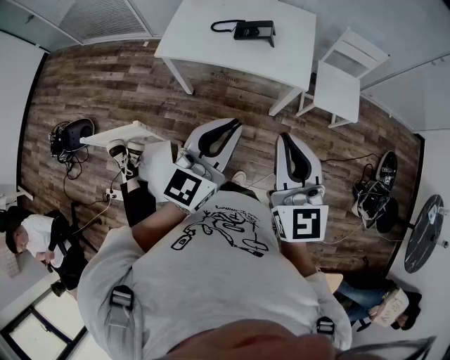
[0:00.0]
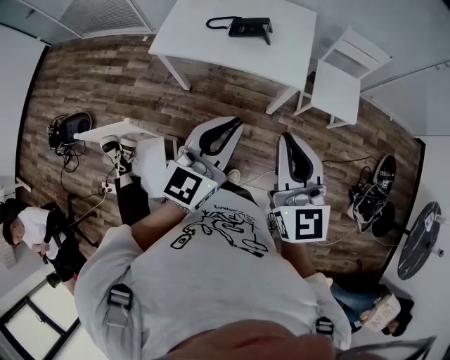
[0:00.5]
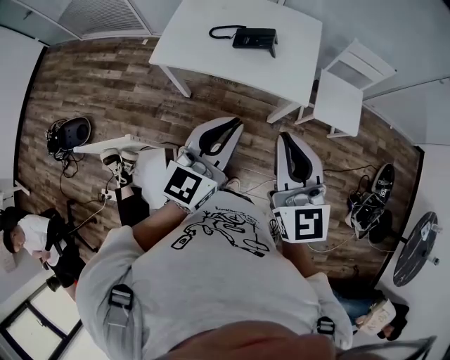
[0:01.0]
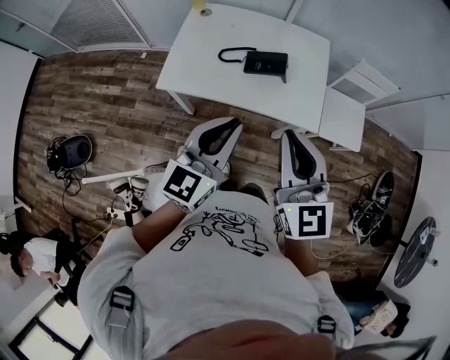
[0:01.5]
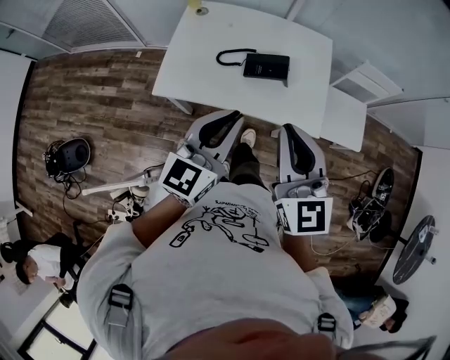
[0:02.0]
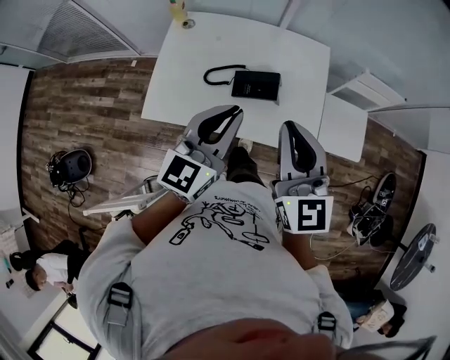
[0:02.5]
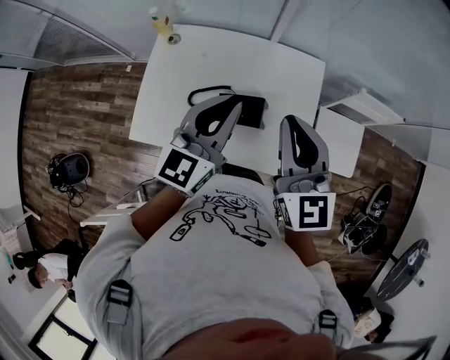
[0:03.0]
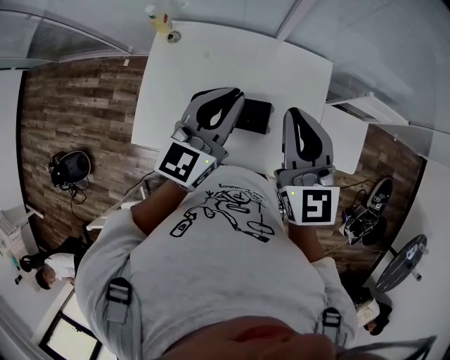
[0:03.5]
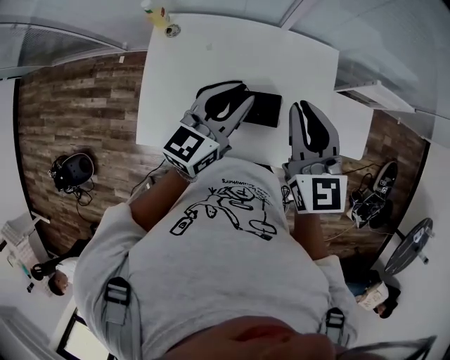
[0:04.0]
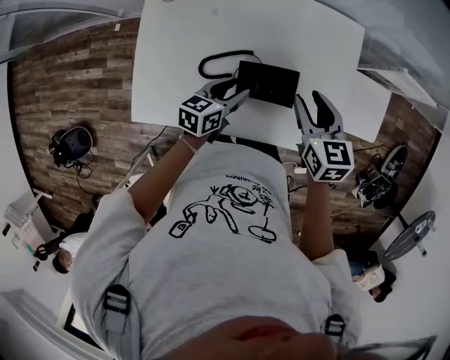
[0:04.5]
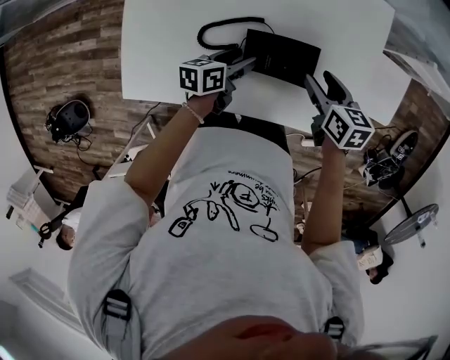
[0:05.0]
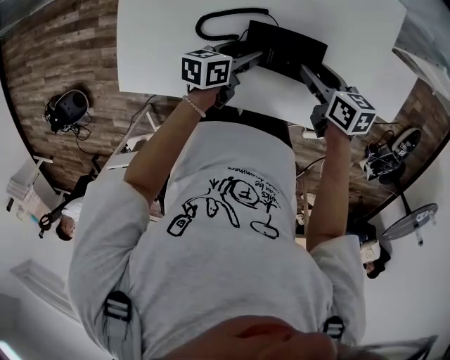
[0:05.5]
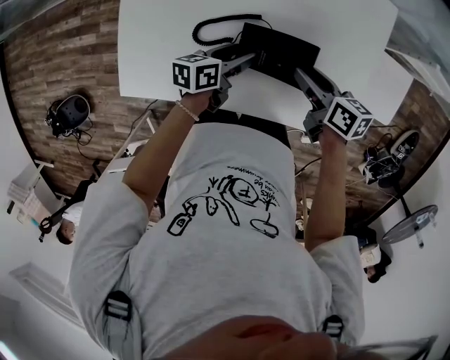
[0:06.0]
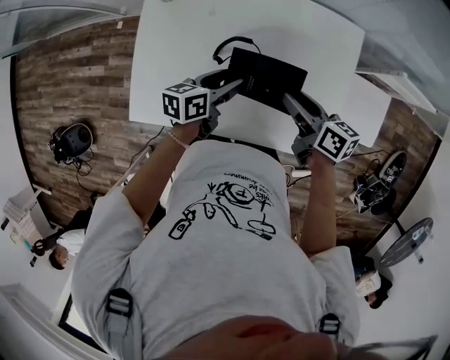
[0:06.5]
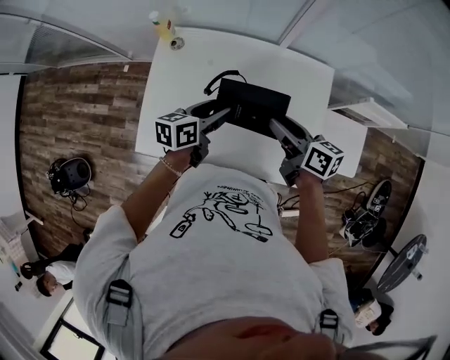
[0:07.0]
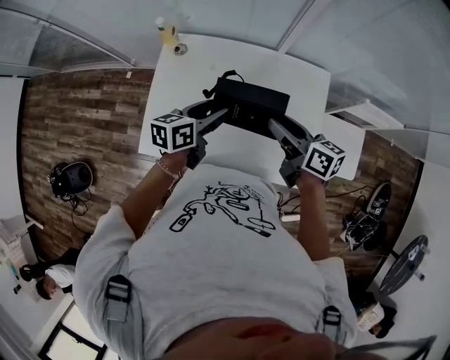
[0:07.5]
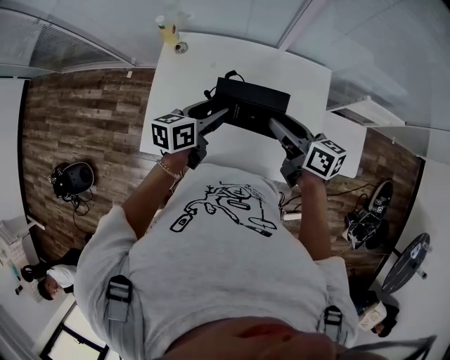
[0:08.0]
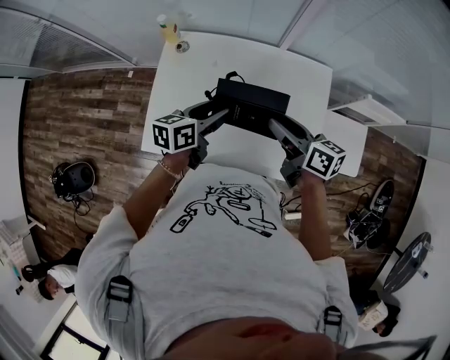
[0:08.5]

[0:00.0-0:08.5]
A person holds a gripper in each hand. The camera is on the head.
0:00.0 to 0:02.0: The grippers both shift forward by about 30 cm.
0:02.0 to 0:04.0: Both grippers move forward, some 35 cm.
0:04.0 to 0:06.5: Both grippers travel together downward, about 25 cm. The left gripper swivels some 40 degrees, and opens up. Meanwhile the right gripper rotates around the line of its fingers by some 50 degrees, clockwise from behind, and opens its fingers.
0:06.5 to 0:08.5: Both grippers travel together upward, some 15 cm.

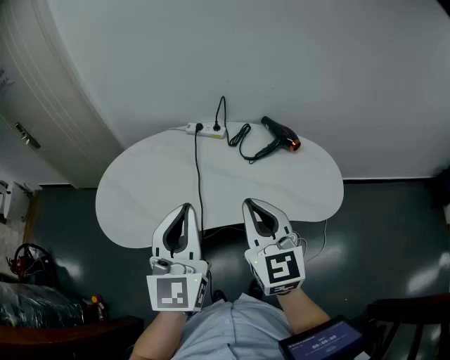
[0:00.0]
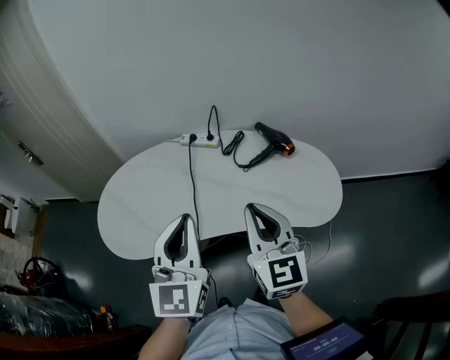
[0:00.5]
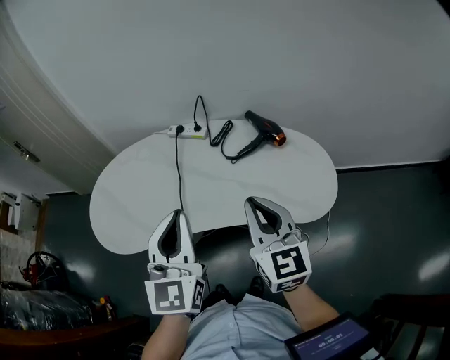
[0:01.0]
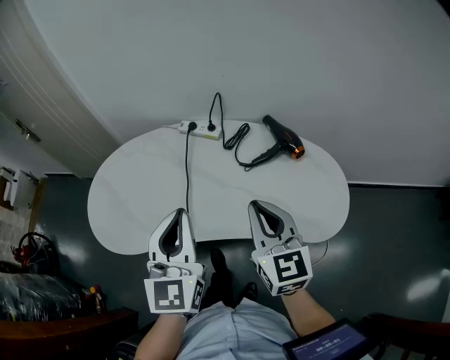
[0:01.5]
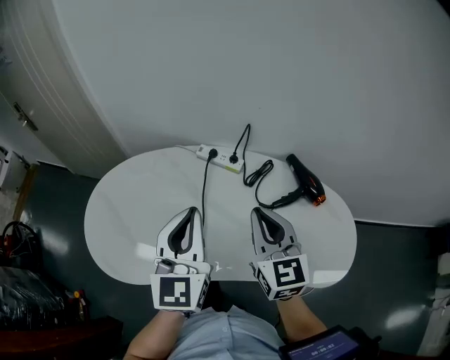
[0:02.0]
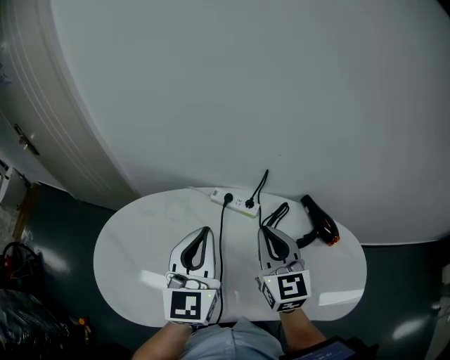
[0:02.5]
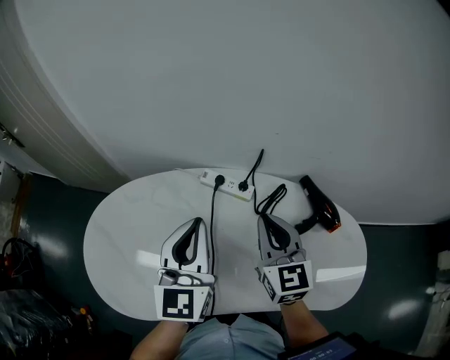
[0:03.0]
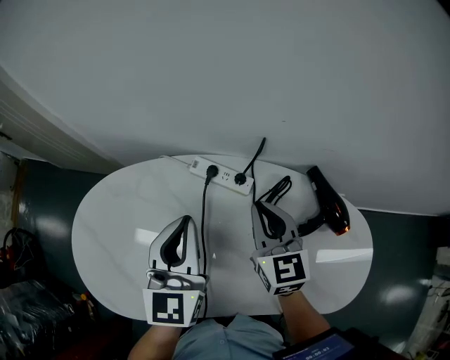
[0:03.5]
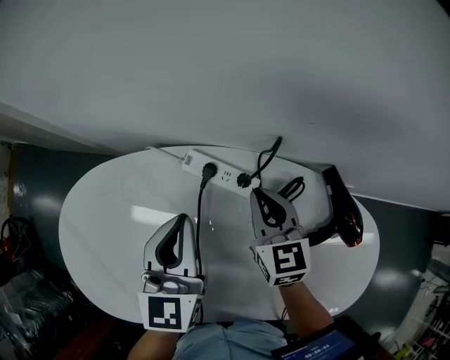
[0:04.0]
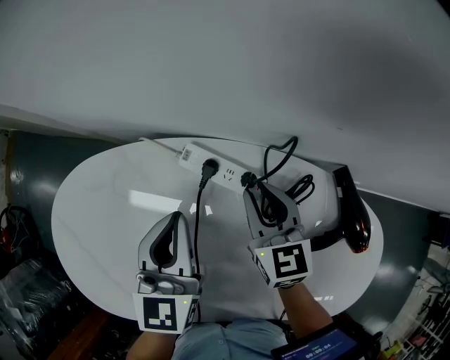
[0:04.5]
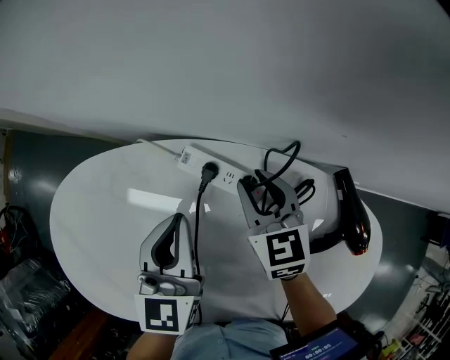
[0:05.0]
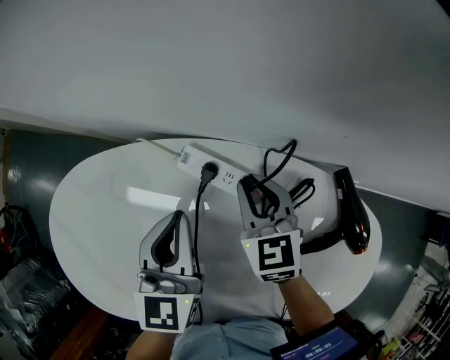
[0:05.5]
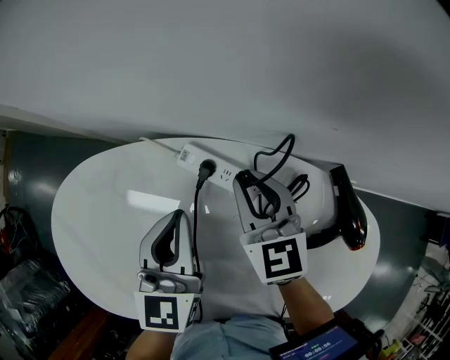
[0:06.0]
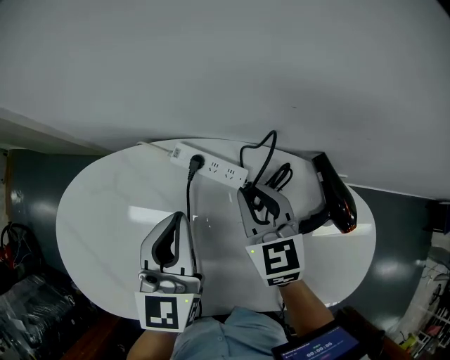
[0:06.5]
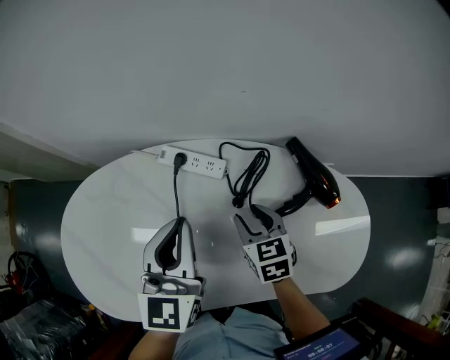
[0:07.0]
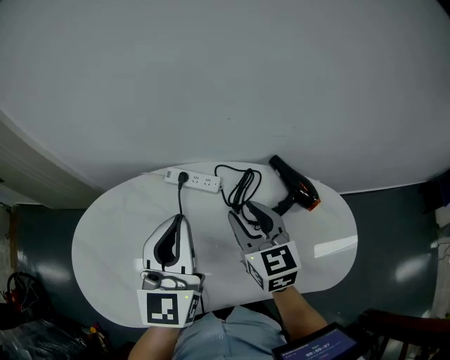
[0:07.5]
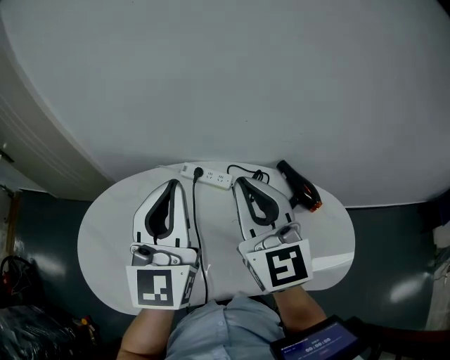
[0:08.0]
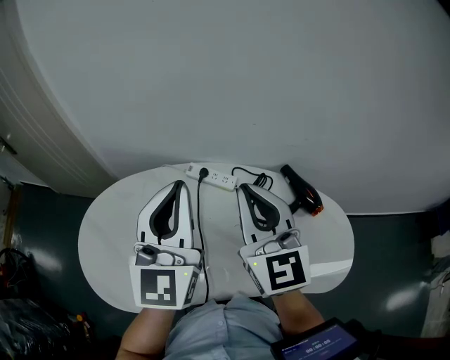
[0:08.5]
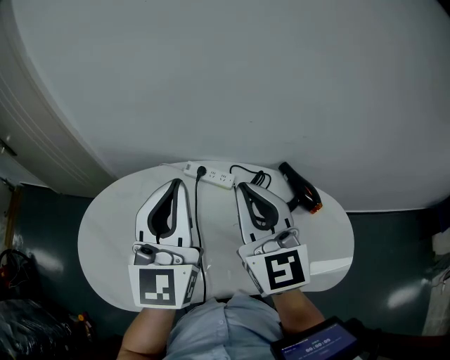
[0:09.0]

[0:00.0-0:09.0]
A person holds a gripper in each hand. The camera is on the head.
0:00.0 to 0:02.0: Both grippers move forward, approximately 20 cm.
0:02.0 to 0:04.5: The two grippers go approximately 30 cm forward and downward. The right gripper swivels roughly 20 degrees, and opens its fingers. The left gripper turns by approximately 20 degrees.
0:04.5 to 0:07.0: The right gripper is displaced backward by approximately 10 cm. Meanwhile the left gripper goes about 10 cm backward, upward and to the right.
0:07.0 to 0:09.0: The right gripper moves upward, approximately 30 cm, tilts its fingers roughly 40 degrees upward, and closes; the left gripper goes about 15 cm upward, and turns by approximately 20 degrees.

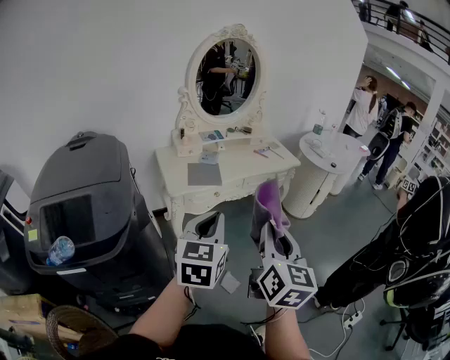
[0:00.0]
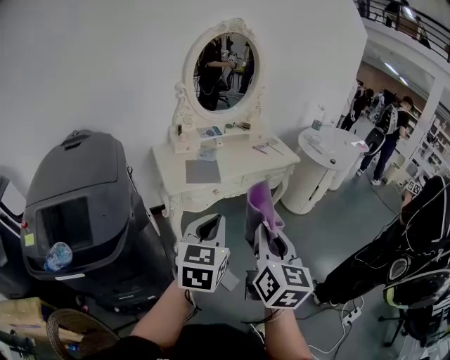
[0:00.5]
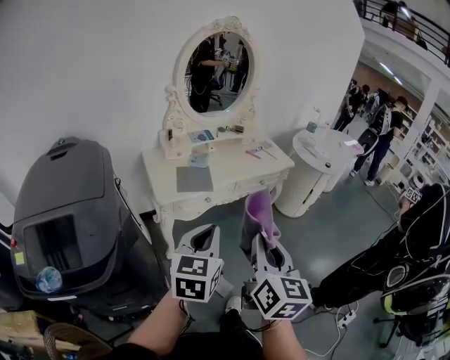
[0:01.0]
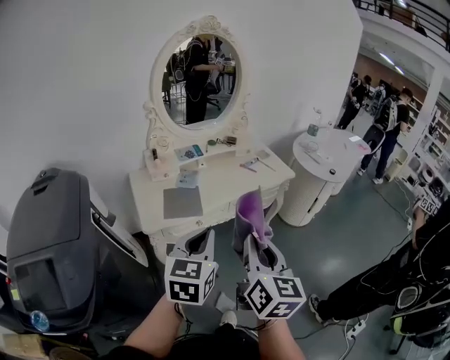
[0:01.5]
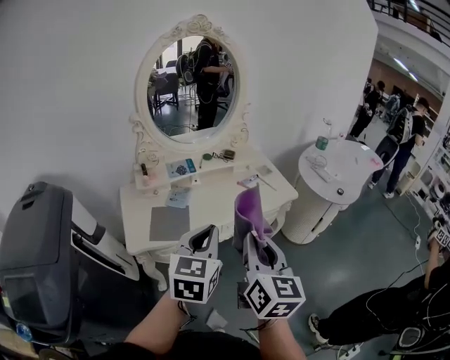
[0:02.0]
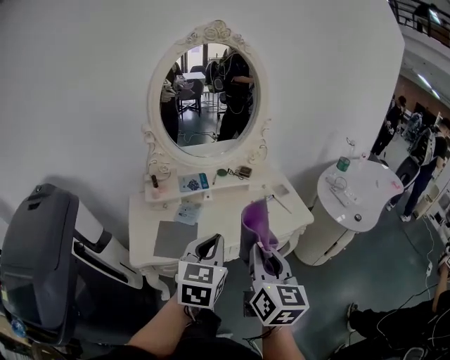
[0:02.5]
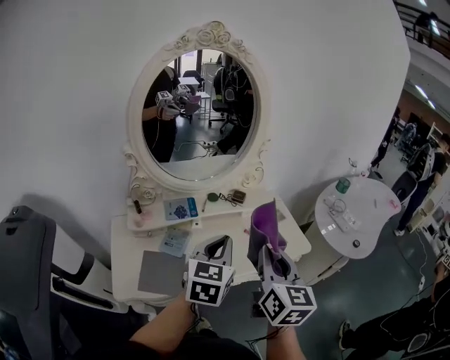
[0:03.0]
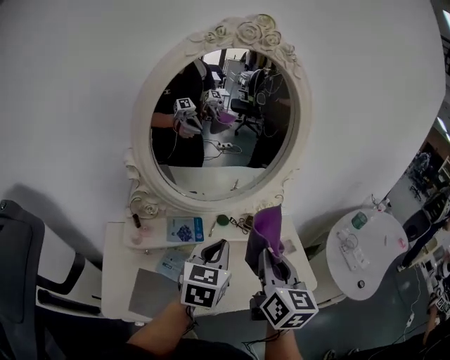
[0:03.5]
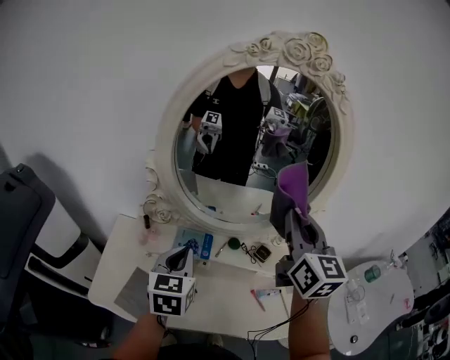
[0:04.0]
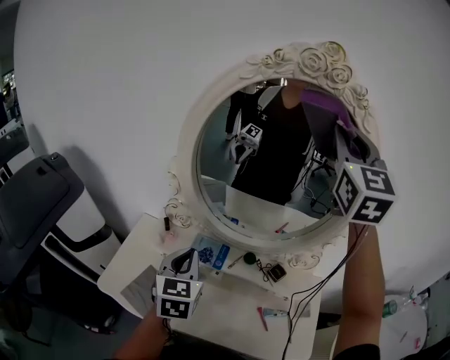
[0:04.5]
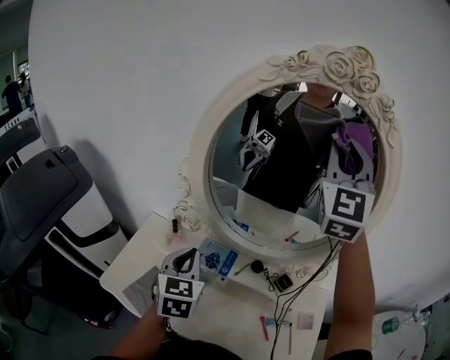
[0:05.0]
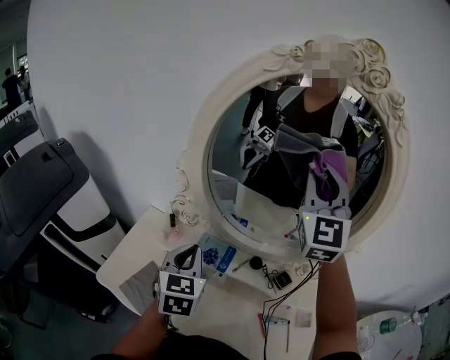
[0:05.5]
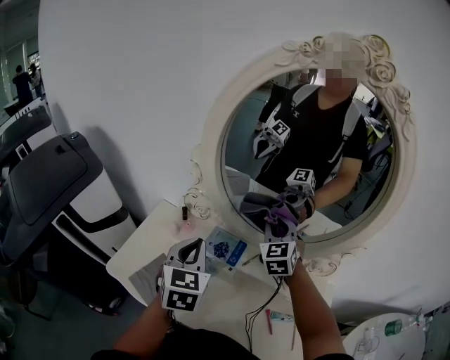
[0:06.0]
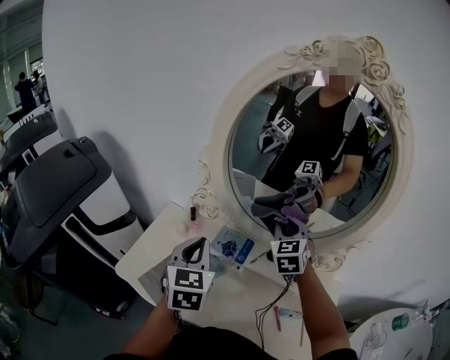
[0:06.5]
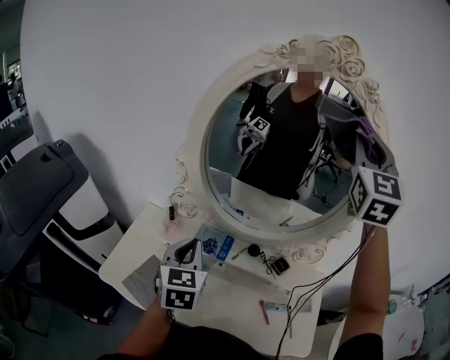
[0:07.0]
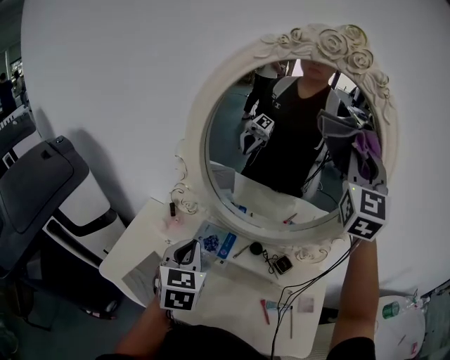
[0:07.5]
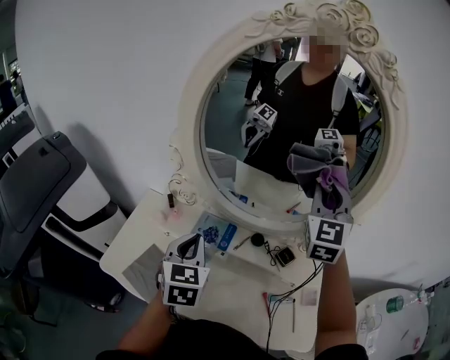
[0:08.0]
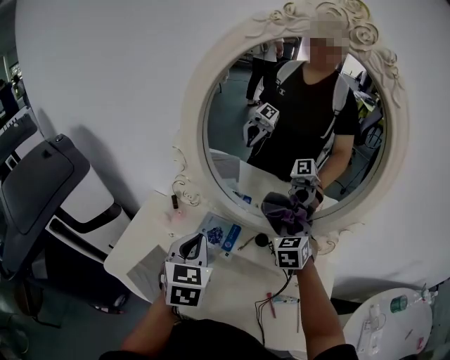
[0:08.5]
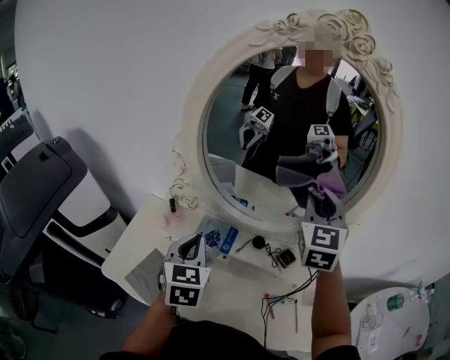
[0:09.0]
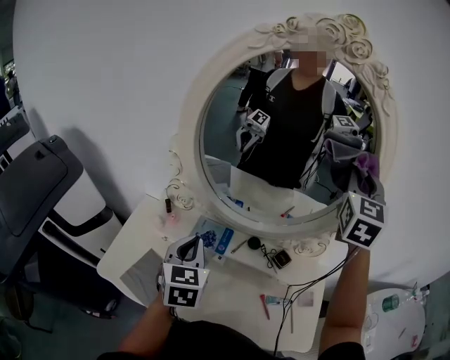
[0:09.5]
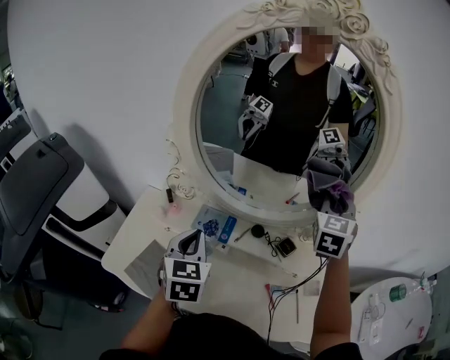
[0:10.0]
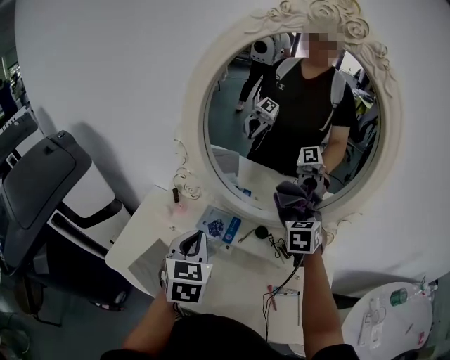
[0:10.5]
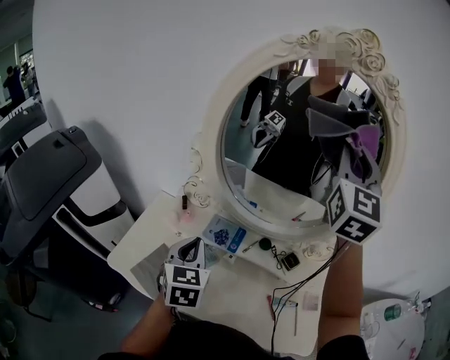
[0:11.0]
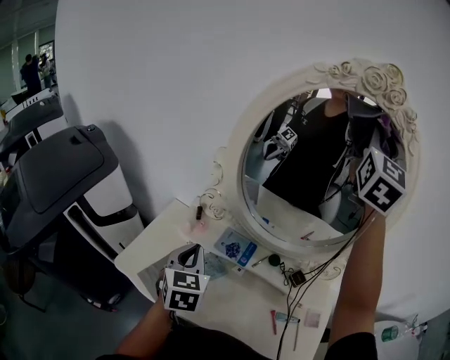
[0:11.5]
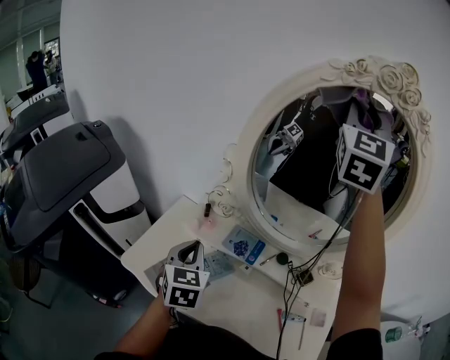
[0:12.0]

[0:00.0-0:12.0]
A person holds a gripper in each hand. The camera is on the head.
0:00.0 to 0:02.0: The grippers both shift forward by approximately 35 cm.
0:02.0 to 0:04.0: The two grippers travel together, some 50 cm. The left gripper turns by roughly 30 degrees; the right gripper changes its angle by some 30 degrees.
0:04.0 to 0:06.0: The right gripper moves downward, forward and to the left, roughly 25 cm, and rotates about 40 degrees, while the left gripper rotates approximately 20 degrees.
0:06.0 to 0:08.0: The right gripper goes approximately 20 cm upward and to the right, and swivels about 20 degrees.
0:08.0 to 0:10.0: The right gripper swings up and down, about 30 cm each way, with 2 reversals, and swivels about 20 degrees.
0:10.0 to 0:12.0: The left gripper travels to the left by some 10 cm. Meanwhile the right gripper is displaced upward and to the left by approximately 40 cm, and tips its fingers upward by about 30 degrees.
